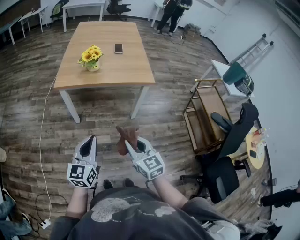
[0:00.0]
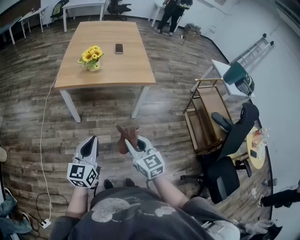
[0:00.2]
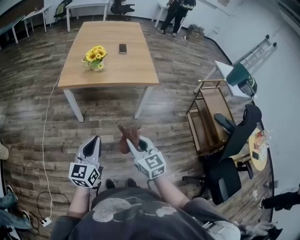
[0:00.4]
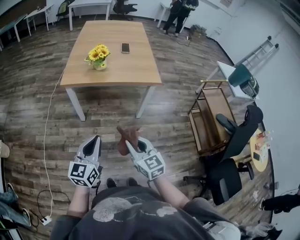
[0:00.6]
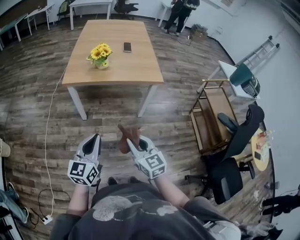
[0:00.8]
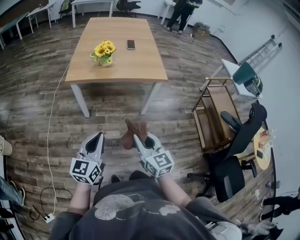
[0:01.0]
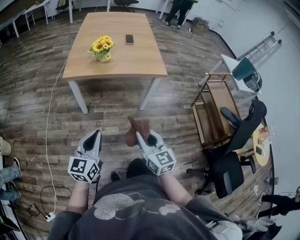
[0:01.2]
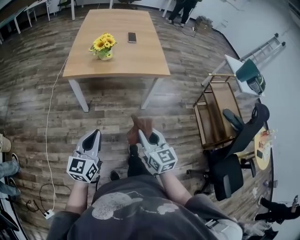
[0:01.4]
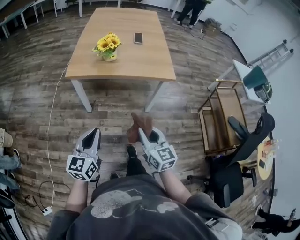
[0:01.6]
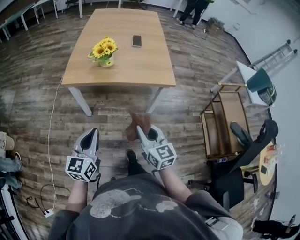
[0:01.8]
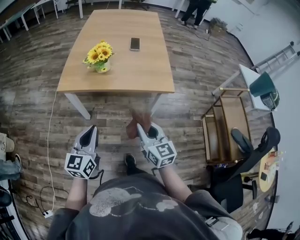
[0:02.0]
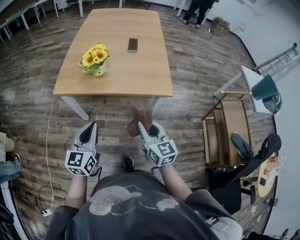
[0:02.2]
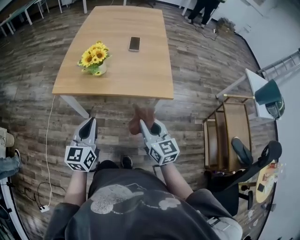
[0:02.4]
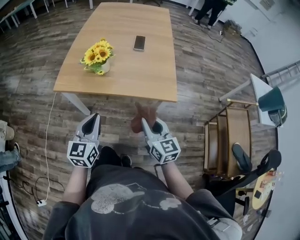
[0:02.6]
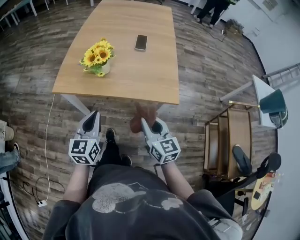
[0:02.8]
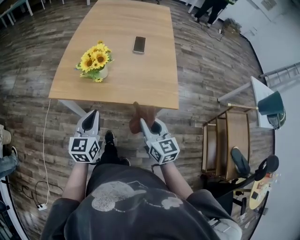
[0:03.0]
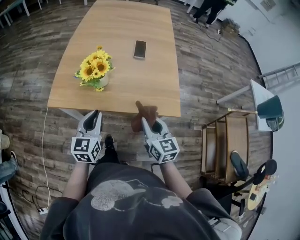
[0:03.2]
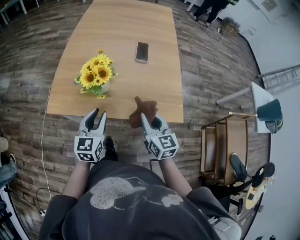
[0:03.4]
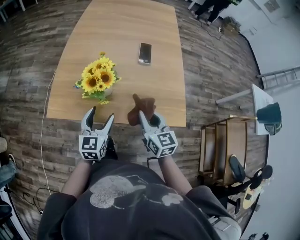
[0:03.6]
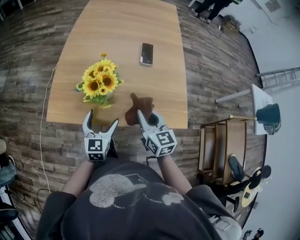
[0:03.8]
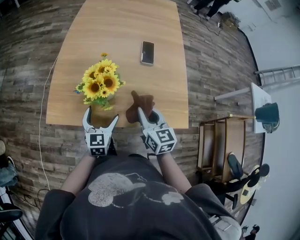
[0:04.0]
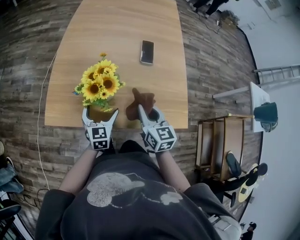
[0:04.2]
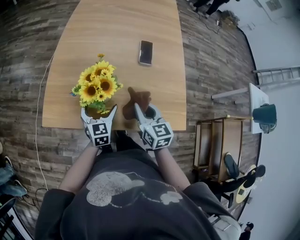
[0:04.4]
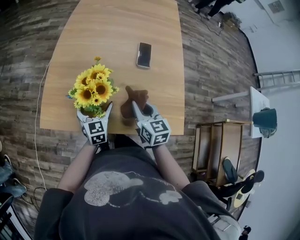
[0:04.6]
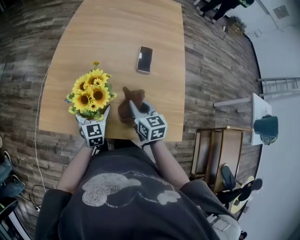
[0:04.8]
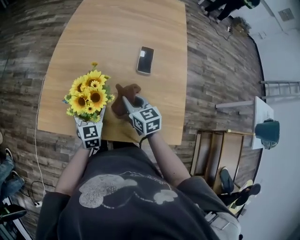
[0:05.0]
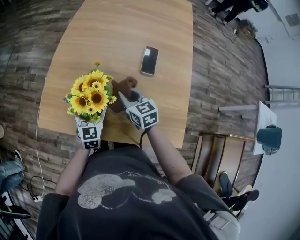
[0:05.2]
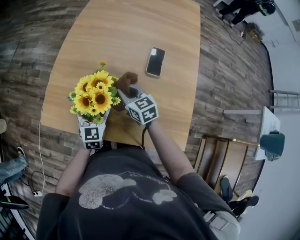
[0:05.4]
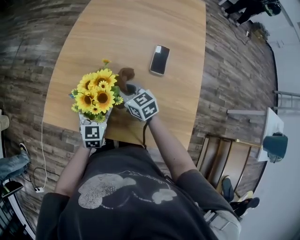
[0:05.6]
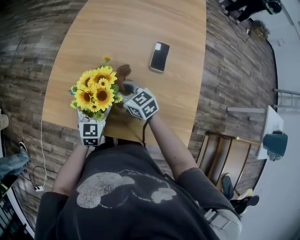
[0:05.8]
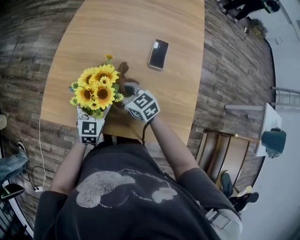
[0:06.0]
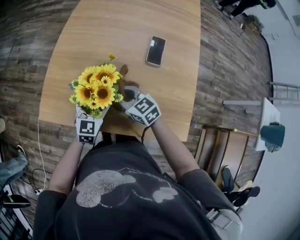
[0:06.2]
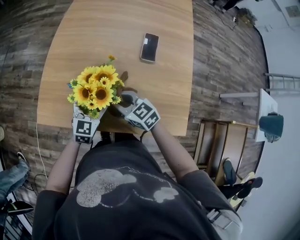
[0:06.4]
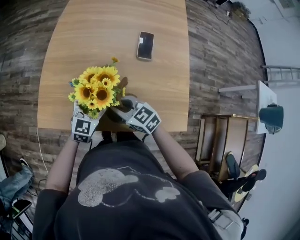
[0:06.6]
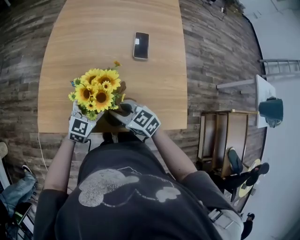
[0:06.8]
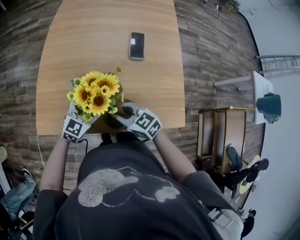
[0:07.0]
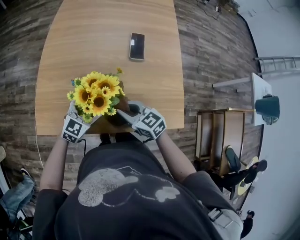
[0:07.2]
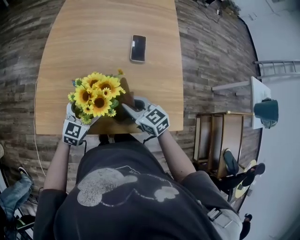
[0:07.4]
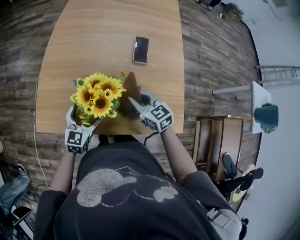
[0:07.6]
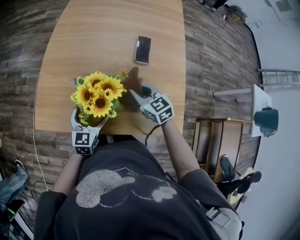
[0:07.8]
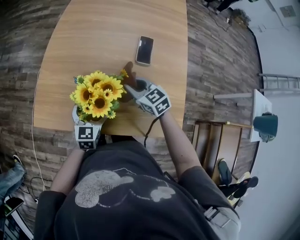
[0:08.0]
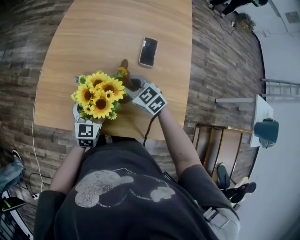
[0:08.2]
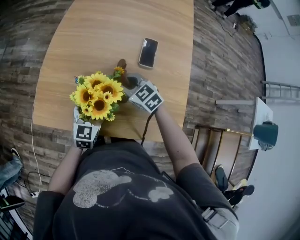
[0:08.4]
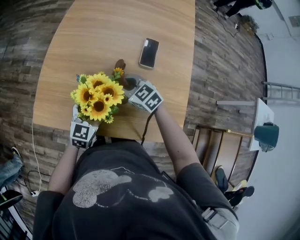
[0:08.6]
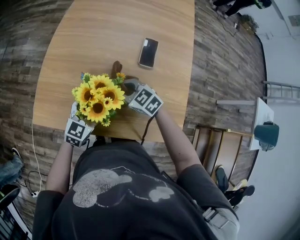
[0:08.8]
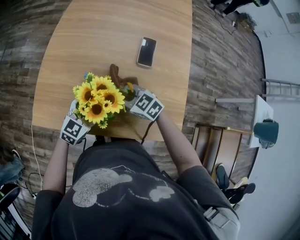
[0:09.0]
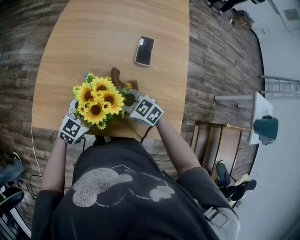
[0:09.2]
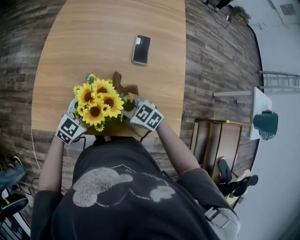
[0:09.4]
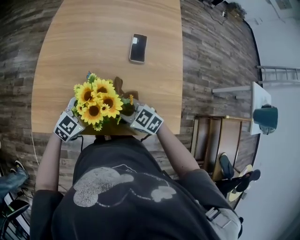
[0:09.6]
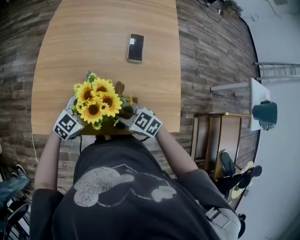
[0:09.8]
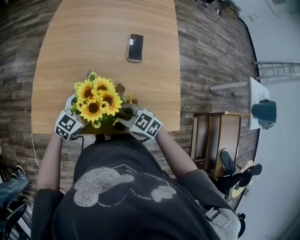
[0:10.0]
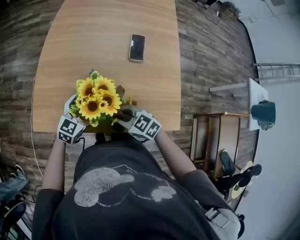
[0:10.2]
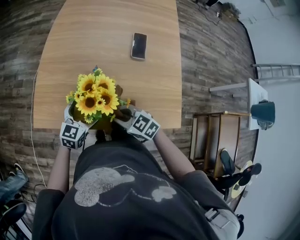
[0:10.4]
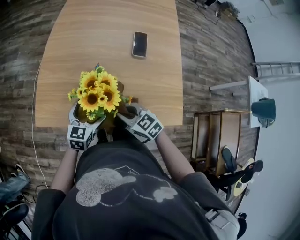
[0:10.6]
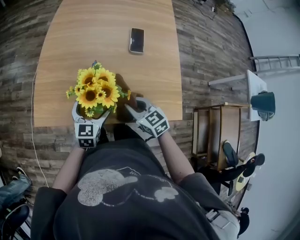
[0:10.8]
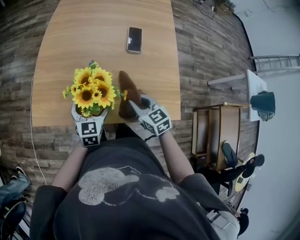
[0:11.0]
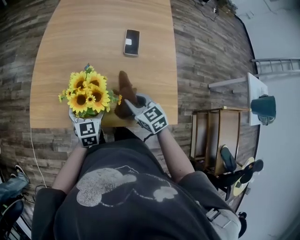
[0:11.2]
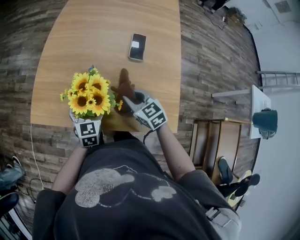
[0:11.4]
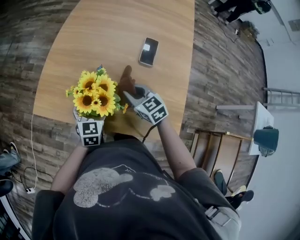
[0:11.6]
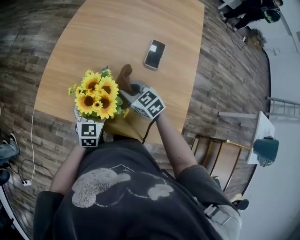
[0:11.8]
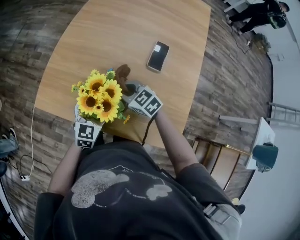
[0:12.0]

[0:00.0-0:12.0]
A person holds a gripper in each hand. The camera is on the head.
0:00.0 to 0:01.6: The right gripper goes about 10 cm forward, while the left gripper shifts about 5 cm forward.
0:01.6 to 0:03.0: Both grippers travel together forward, roughly 25 cm.
0:03.0 to 0:04.4: The left gripper travels forward and downward by approximately 25 cm, and opens its fingers. Meanwhile the right gripper goes about 20 cm forward.
0:04.4 to 0:06.0: The right gripper goes about 15 cm forward, to the left and downward, and swivels approximately 40 degrees.
0:06.0 to 0:07.6: The right gripper shifts approximately 10 cm to the right and backward.
0:07.6 to 0:09.0: The right gripper moves to the left, roughly 5 cm, reaches roughly 10 cm forward, then returns, and changes its angle by approximately 30 degrees.
0:09.0 to 0:10.4: The right gripper moves roughly 10 cm.
0:10.4 to 0:12.0: The right gripper is displaced forward by about 10 cm. The left gripper changes its angle by approximately 20 degrees.

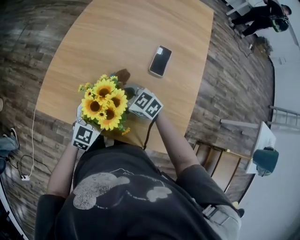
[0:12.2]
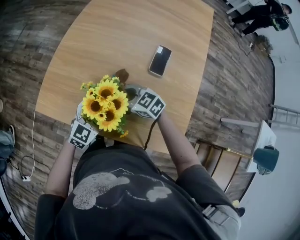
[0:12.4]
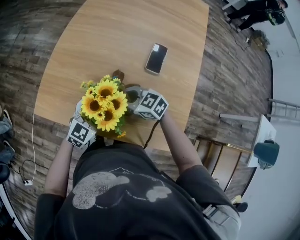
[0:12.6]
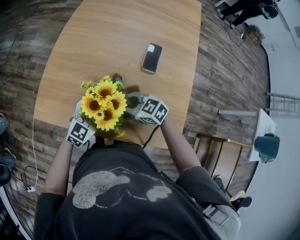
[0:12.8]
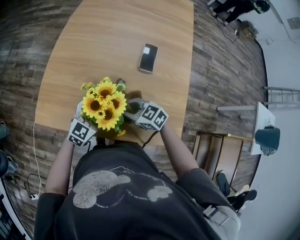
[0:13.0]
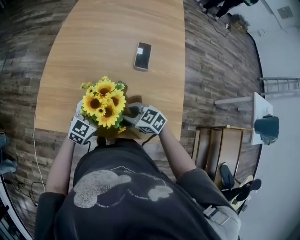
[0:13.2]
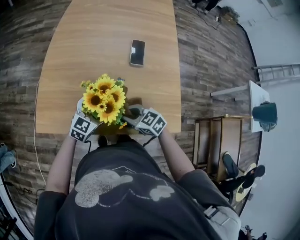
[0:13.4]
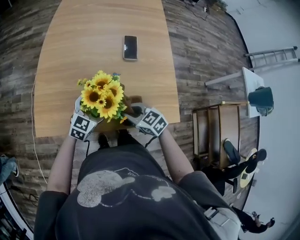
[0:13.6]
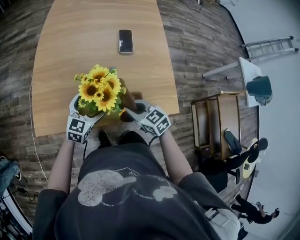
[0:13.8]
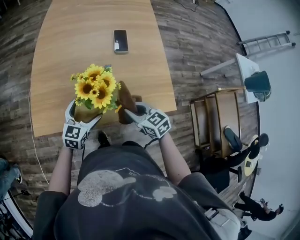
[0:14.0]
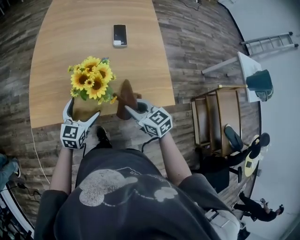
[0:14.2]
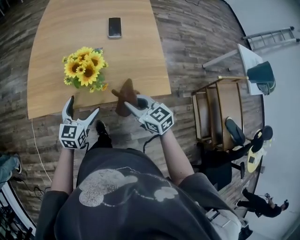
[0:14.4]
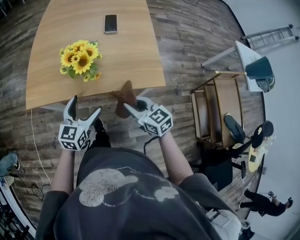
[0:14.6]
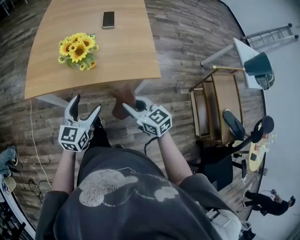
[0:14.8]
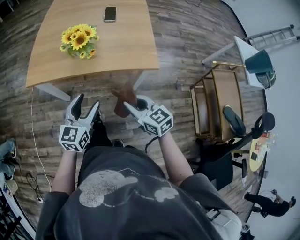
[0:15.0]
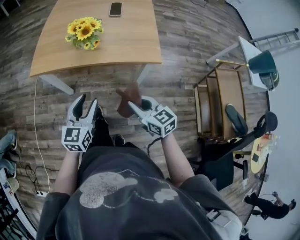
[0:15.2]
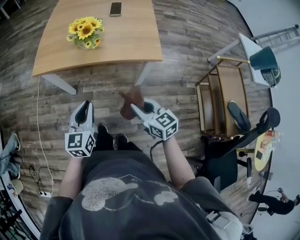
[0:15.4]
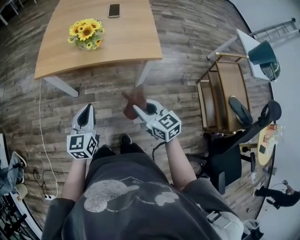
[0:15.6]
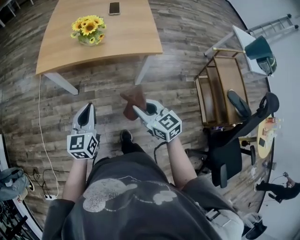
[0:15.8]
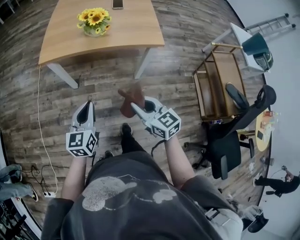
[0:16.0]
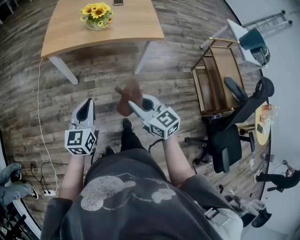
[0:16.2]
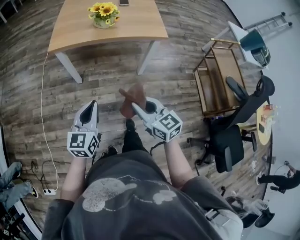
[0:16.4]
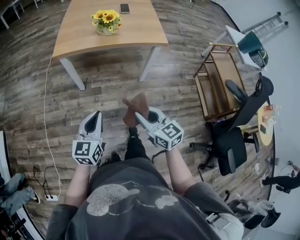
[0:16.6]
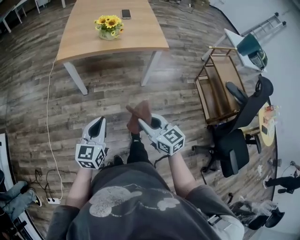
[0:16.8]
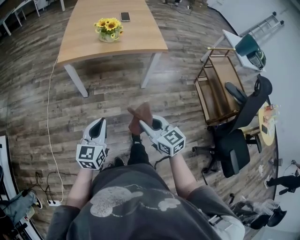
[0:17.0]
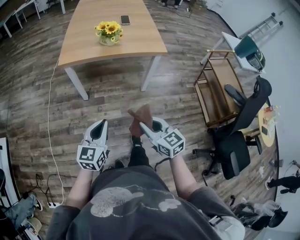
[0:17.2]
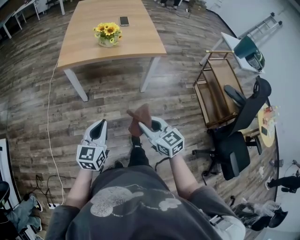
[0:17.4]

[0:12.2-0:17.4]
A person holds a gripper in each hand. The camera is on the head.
0:12.2 to 0:14.0: The right gripper changes place by approximately 15 cm, and turns by approximately 40 degrees.
0:14.0 to 0:15.6: Both grippers travel together backward, approximately 30 cm. The left gripper changes its angle by about 20 degrees, and closes its fingers.
0:15.6 to 0:17.4: Both grippers move backward and to the left, about 25 cm.

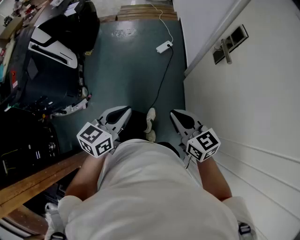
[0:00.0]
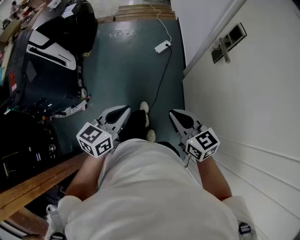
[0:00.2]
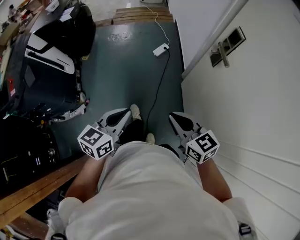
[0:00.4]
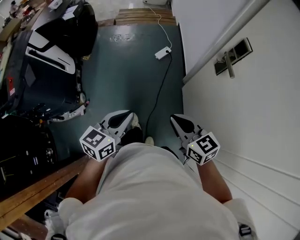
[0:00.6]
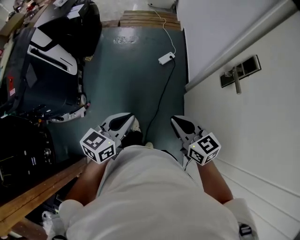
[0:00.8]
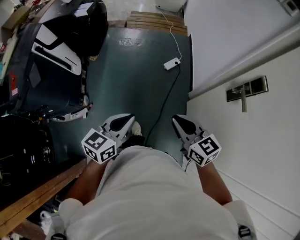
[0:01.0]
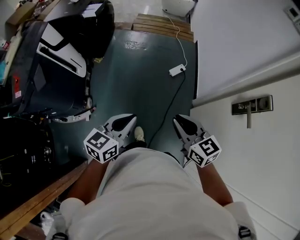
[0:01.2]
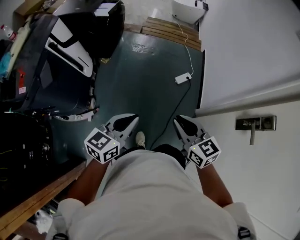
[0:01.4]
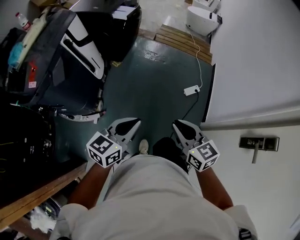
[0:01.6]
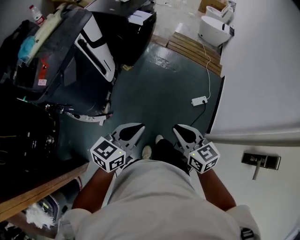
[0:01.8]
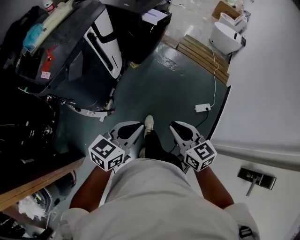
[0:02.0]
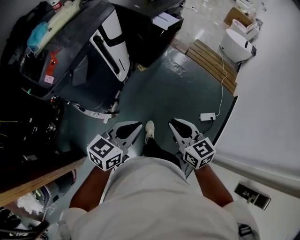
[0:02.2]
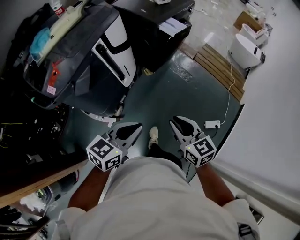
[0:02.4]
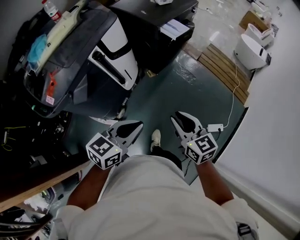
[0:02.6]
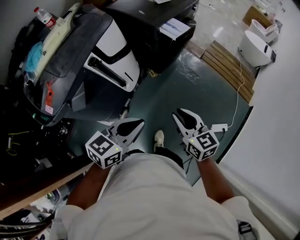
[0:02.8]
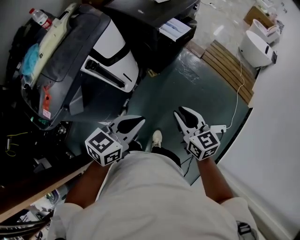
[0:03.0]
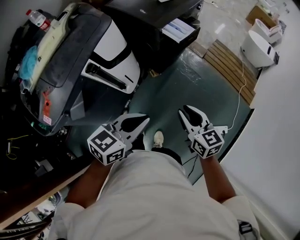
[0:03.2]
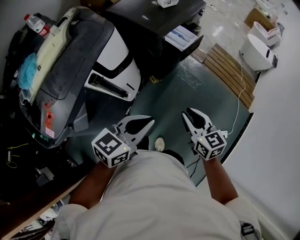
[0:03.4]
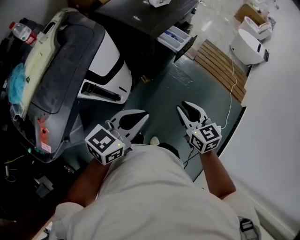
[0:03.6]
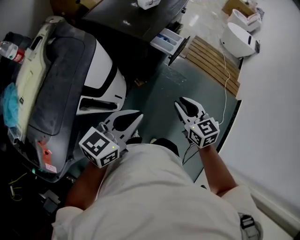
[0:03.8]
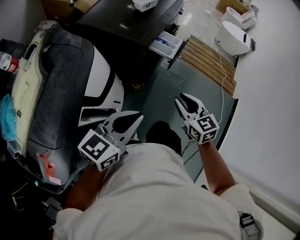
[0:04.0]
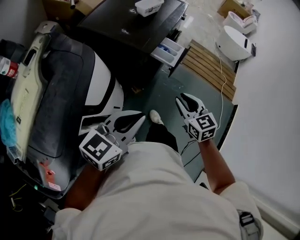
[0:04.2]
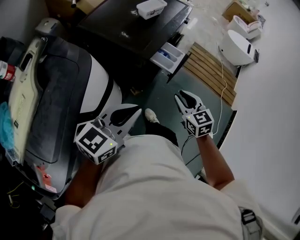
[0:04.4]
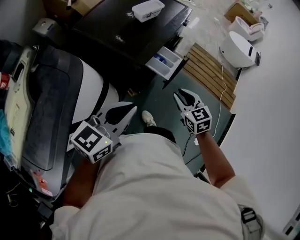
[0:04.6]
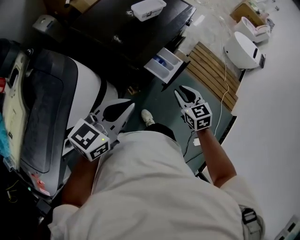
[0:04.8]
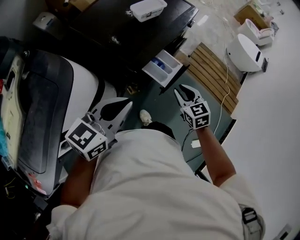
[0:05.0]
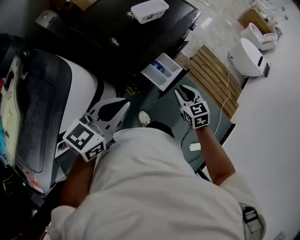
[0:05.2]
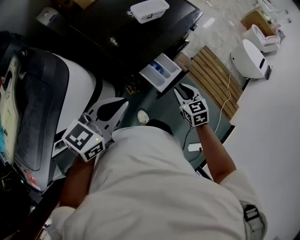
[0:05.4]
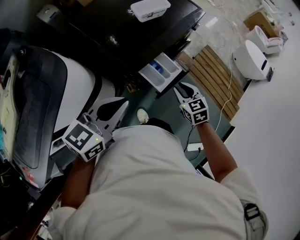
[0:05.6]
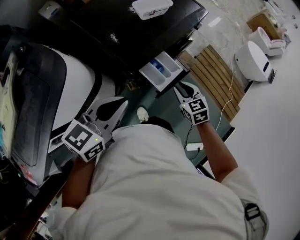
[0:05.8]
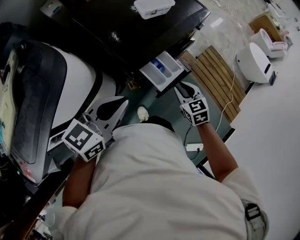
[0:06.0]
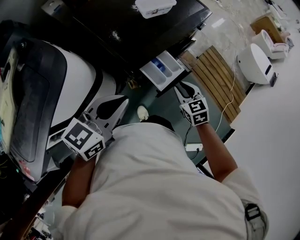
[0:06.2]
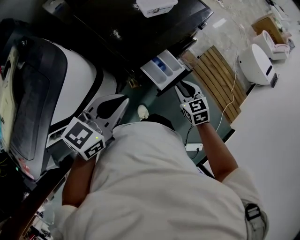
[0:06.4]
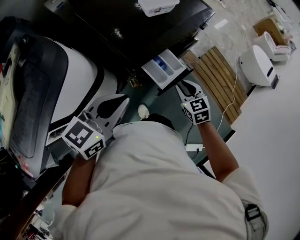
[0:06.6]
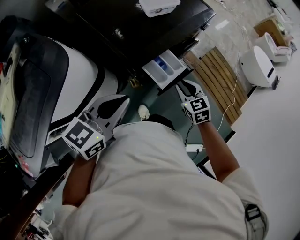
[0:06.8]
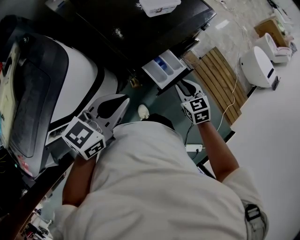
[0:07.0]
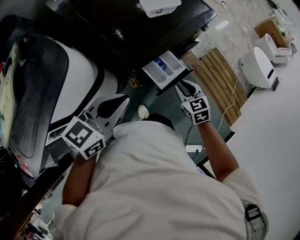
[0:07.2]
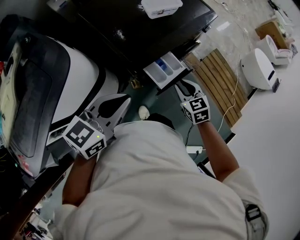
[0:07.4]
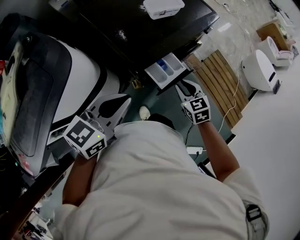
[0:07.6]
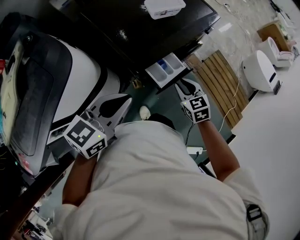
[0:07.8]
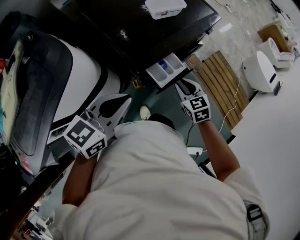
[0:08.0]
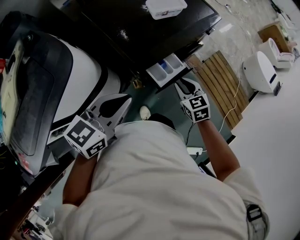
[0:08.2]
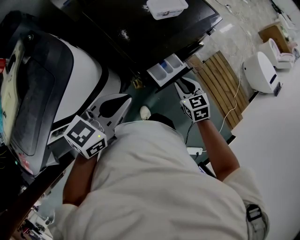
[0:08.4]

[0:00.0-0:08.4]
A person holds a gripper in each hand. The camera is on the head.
0:00.0 to 0:01.4: Both grippers travel together forward and to the left, roughly 30 cm.
0:01.4 to 0:02.8: The left gripper moves approximately 35 cm, and swivels approximately 20 degrees; the right gripper moves about 40 cm, and turns by approximately 30 degrees.
0:02.8 to 0:04.2: The two grippers go some 30 cm forward.
0:04.2 to 0:05.6: The right gripper is displaced forward and downward by about 25 cm. Meanwhile the left gripper heads forward, covering roughly 20 cm.
0:05.6 to 0:08.4: The grippers stay close to where they were, moving slightly.
